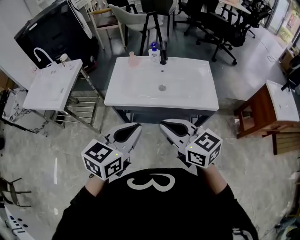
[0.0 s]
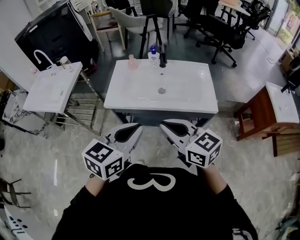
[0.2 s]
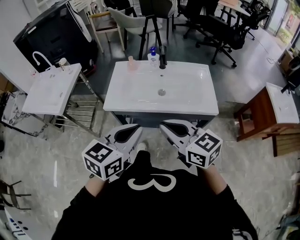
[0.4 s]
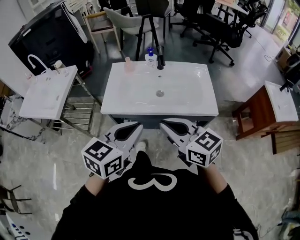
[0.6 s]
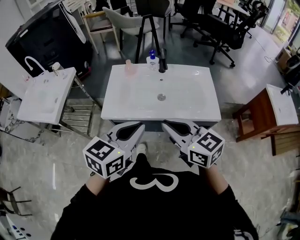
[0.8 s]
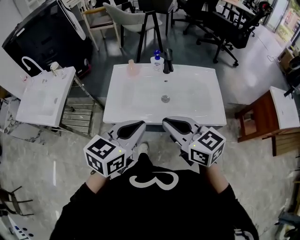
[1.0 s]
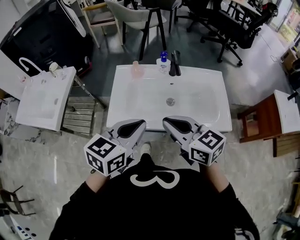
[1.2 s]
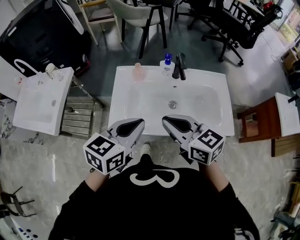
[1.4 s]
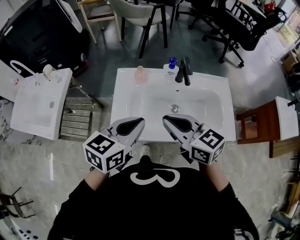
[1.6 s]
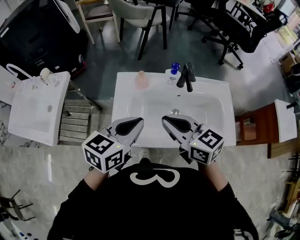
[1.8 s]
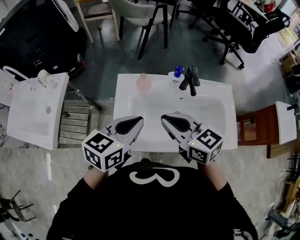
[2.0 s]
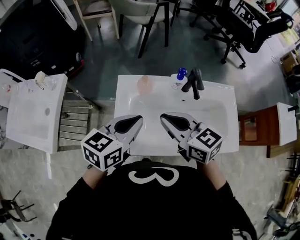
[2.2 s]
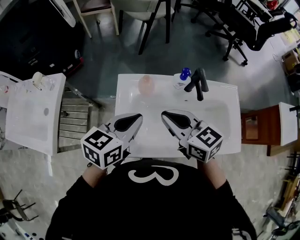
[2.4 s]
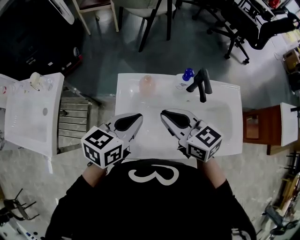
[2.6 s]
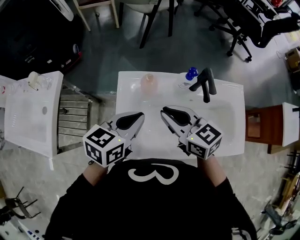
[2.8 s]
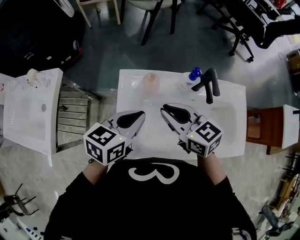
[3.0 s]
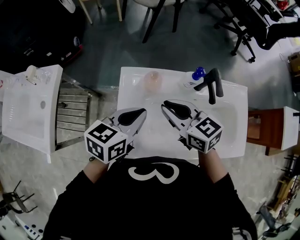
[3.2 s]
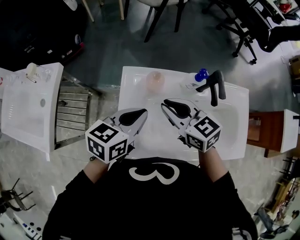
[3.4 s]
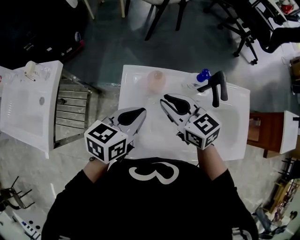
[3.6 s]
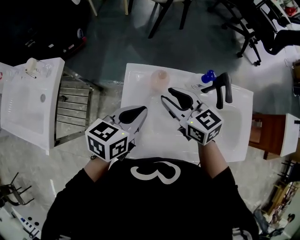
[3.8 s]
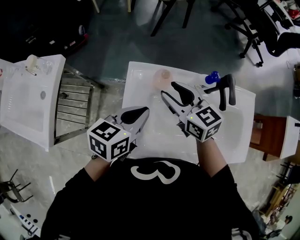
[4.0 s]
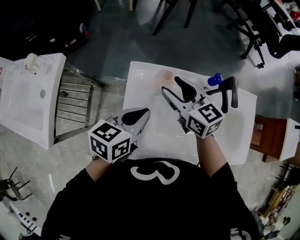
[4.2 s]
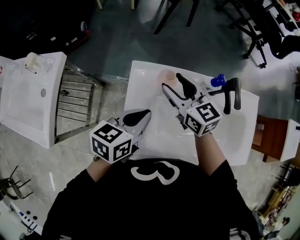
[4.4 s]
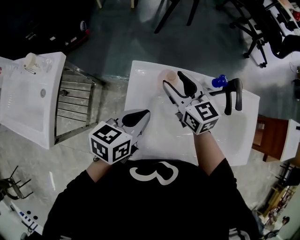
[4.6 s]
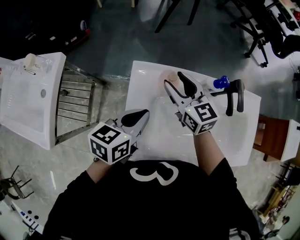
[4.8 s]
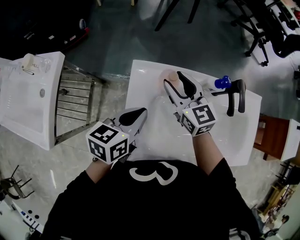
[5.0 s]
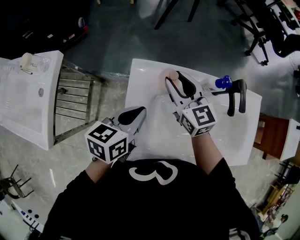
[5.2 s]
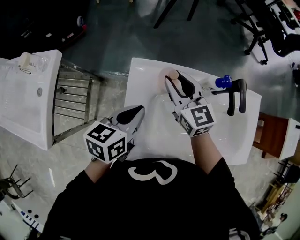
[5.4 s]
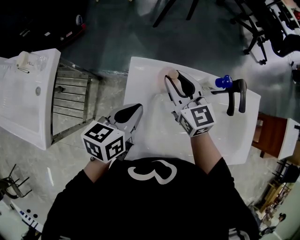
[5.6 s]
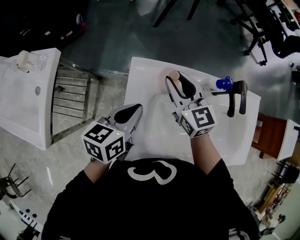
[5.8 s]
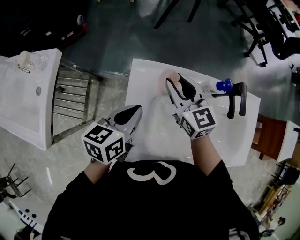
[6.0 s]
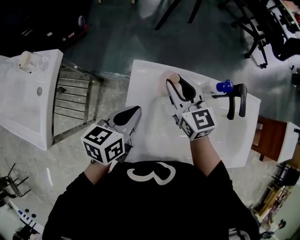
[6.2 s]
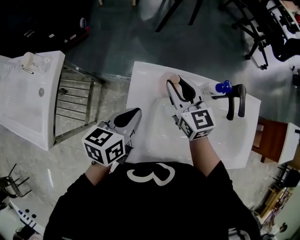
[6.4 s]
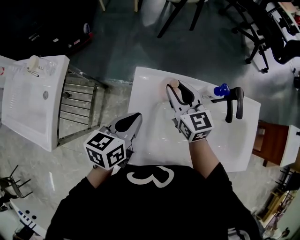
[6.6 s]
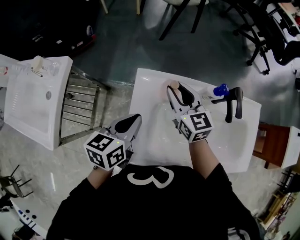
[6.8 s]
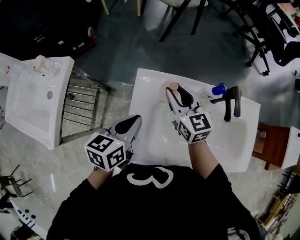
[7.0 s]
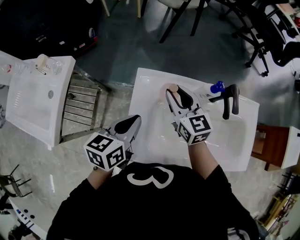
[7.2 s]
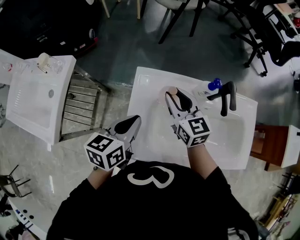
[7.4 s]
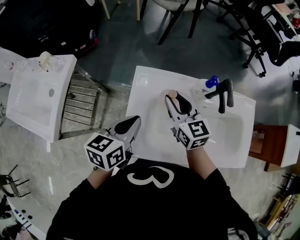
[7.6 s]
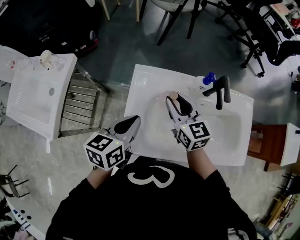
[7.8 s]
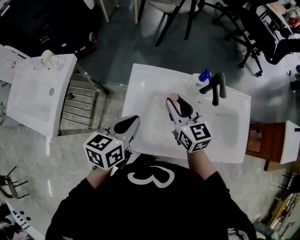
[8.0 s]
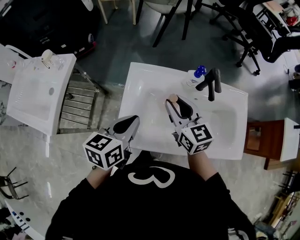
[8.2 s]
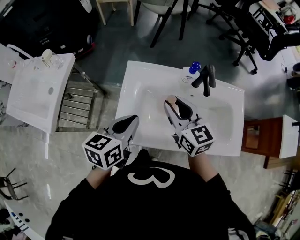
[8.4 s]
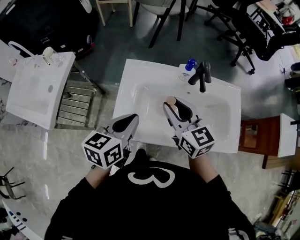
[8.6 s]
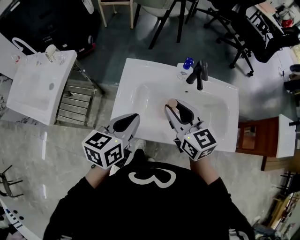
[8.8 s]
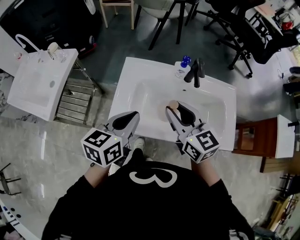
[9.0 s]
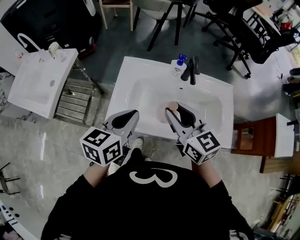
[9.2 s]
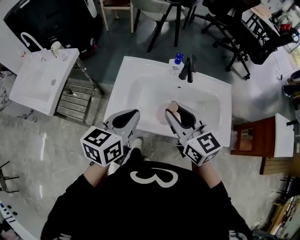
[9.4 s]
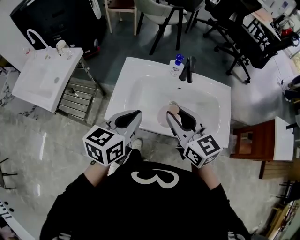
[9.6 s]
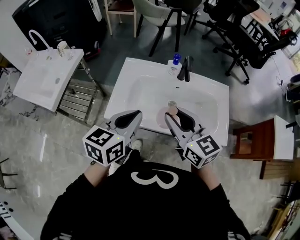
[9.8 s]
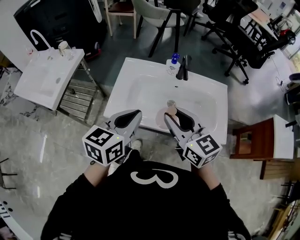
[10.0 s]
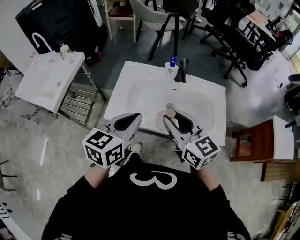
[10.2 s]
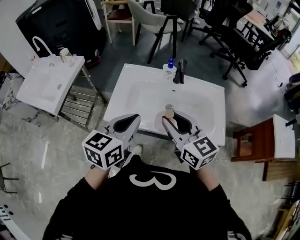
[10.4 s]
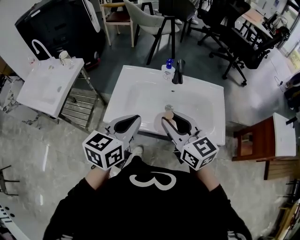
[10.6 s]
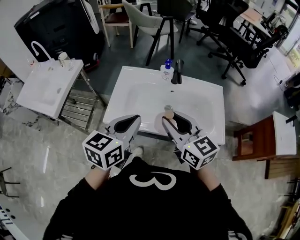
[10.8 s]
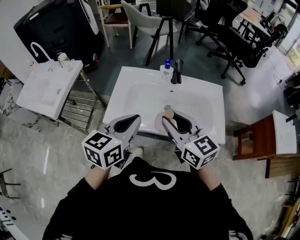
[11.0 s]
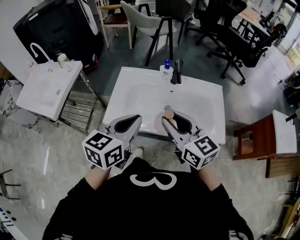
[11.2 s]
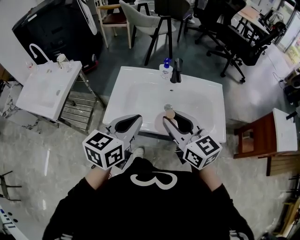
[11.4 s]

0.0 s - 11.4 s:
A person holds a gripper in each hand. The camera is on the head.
0.0 s - 1.4 s: Both grippers move forward, some 25 cm.
1.4 s - 2.8 s: The right gripper travels forward by about 20 cm, while the left gripper heads forward and downward, covering about 20 cm.
2.8 s - 4.2 s: The right gripper is displaced forward and downward by approximately 10 cm, and opens its fingers, while the left gripper moves downward, approximately 5 cm.
4.2 s - 5.6 s: The left gripper ends up roughly 5 cm from where it was.
5.6 s - 7.2 s: The grippers move only a little.
7.2 s - 8.6 s: The right gripper is displaced backward, upward and to the right by about 20 cm. The left gripper moves backward, to the right and upward, roughly 15 cm.
8.6 s - 10.0 s: The left gripper travels backward, upward and to the right by approximately 15 cm. The right gripper heads backward and upward, covering some 15 cm.
10.0 s - 11.4 s: The grippers make only small movements.

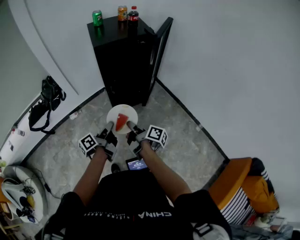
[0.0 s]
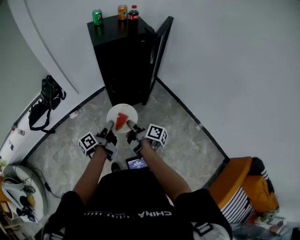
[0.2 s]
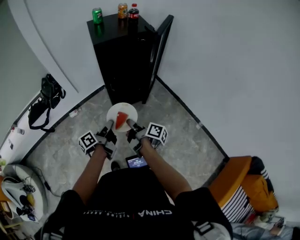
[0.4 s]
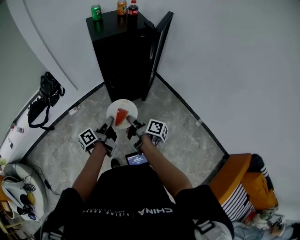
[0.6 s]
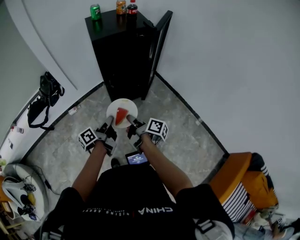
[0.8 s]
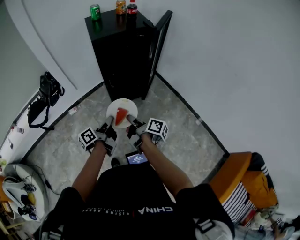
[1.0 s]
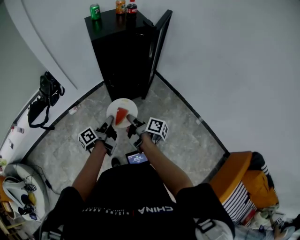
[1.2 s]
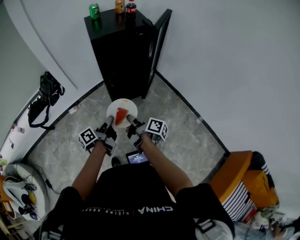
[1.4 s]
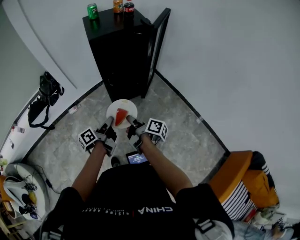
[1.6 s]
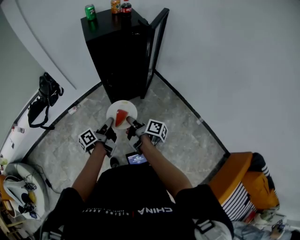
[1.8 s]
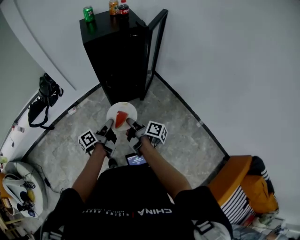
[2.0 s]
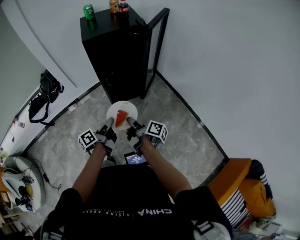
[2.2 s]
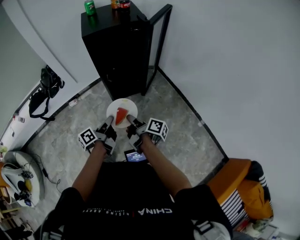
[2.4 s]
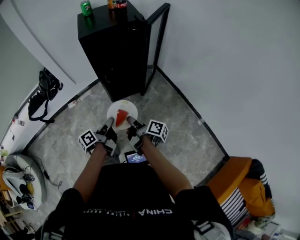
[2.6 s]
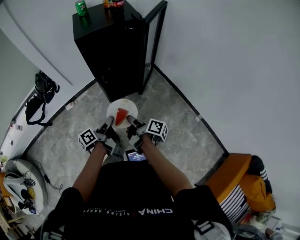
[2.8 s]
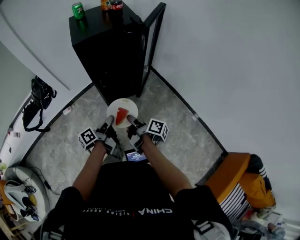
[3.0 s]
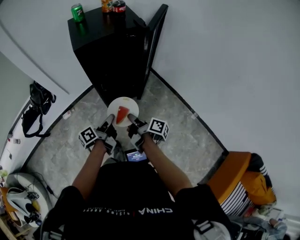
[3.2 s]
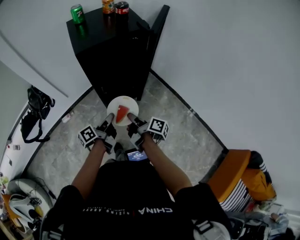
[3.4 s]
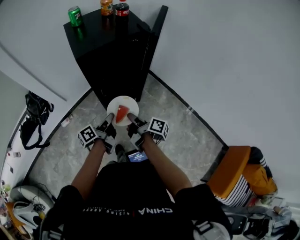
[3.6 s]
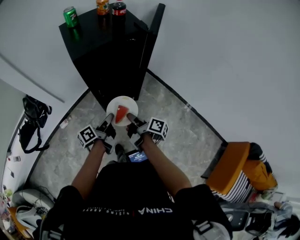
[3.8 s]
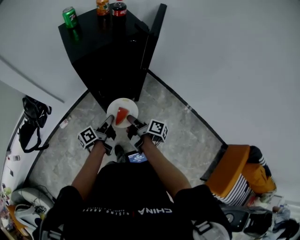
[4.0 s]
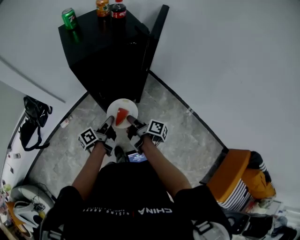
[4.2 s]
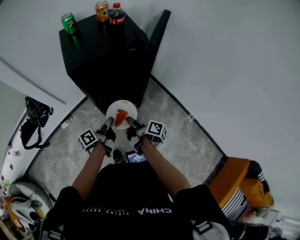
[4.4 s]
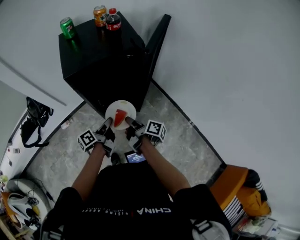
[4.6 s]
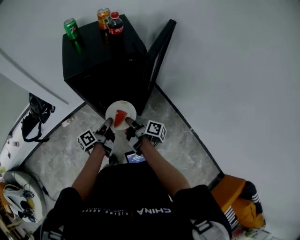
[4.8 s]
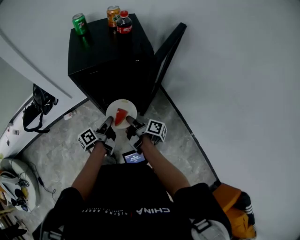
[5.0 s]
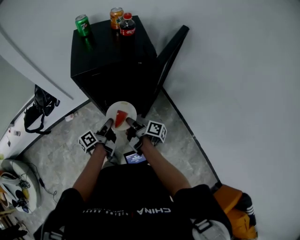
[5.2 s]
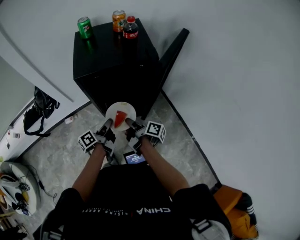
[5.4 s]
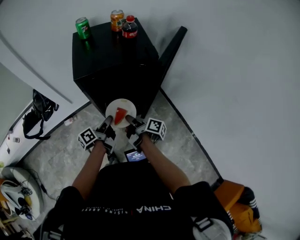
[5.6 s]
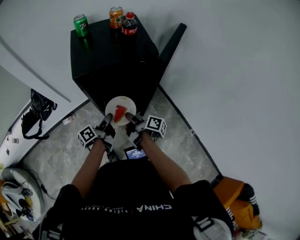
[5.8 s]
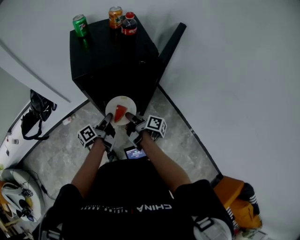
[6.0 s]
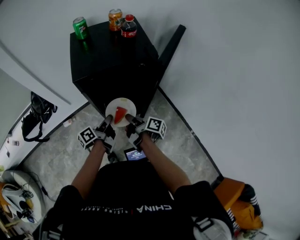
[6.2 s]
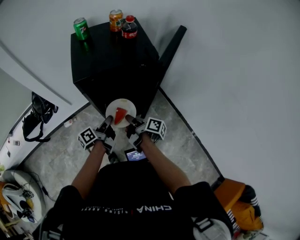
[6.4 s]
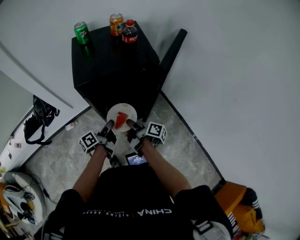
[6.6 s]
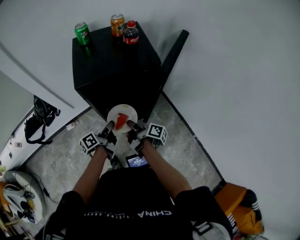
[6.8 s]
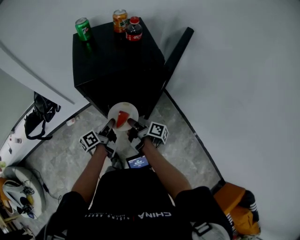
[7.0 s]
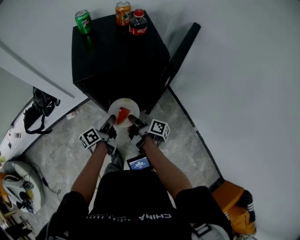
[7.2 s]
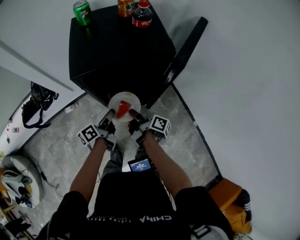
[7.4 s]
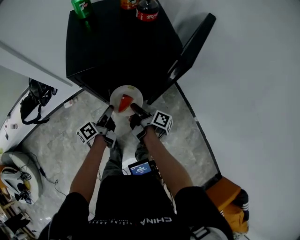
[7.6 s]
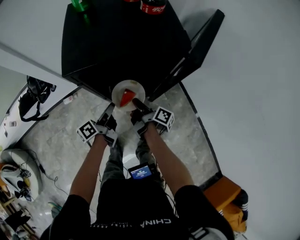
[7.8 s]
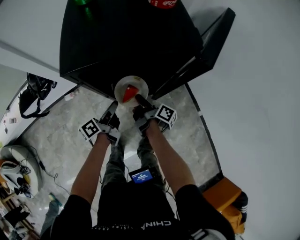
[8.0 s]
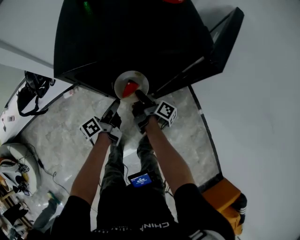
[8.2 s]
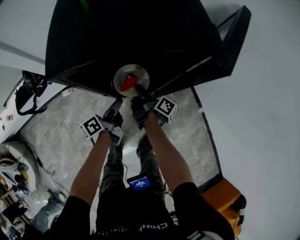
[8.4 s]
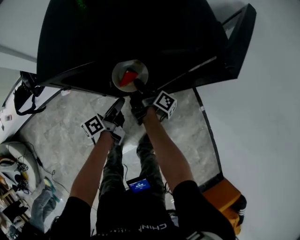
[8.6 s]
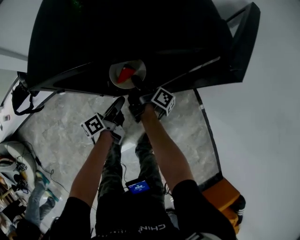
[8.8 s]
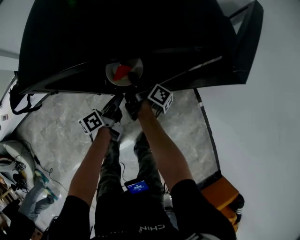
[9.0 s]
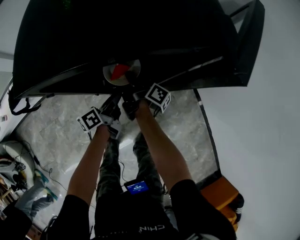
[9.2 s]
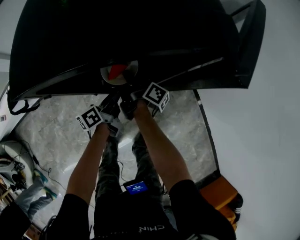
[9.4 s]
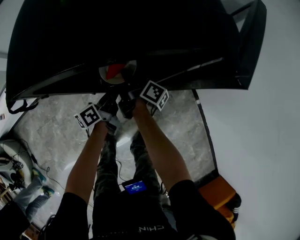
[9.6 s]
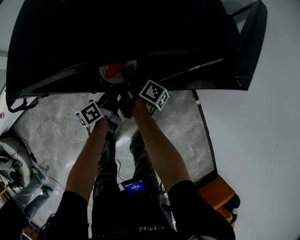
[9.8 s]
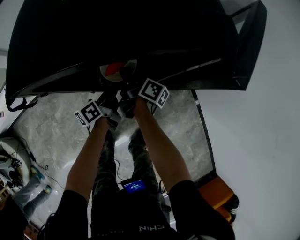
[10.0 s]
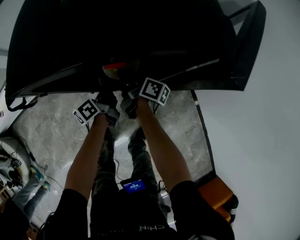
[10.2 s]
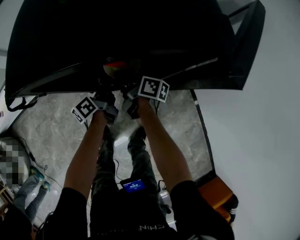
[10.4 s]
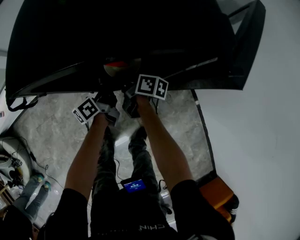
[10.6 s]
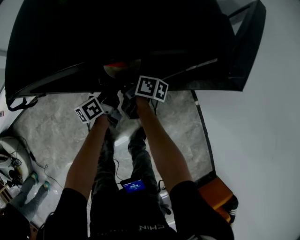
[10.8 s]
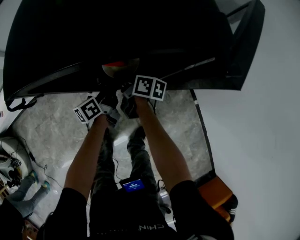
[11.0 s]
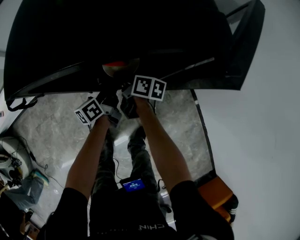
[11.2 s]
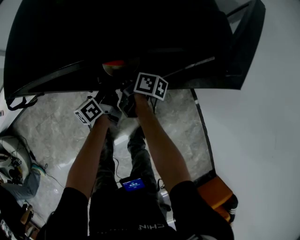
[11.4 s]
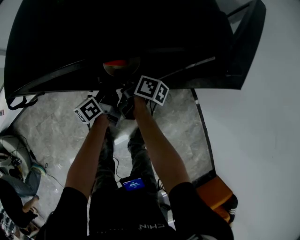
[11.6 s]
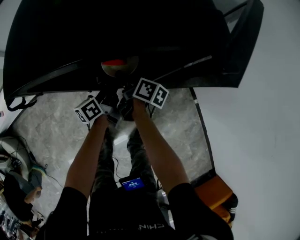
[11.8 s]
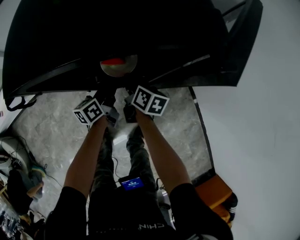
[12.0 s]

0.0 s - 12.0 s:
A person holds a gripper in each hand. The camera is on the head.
1.6 s - 3.0 s: The left gripper moves about 10 cm.
3.0 s - 4.4 s: The left gripper moves approximately 15 cm.
4.4 s - 6.0 s: The left gripper ends up some 10 cm from where it was.
6.0 s - 7.6 s: The left gripper moves about 5 cm.
7.6 s - 9.0 s: The left gripper travels downward by about 15 cm.
9.0 s - 10.4 s: The left gripper shifts by approximately 5 cm.
10.4 s - 12.0 s: The left gripper turns by about 20 degrees.

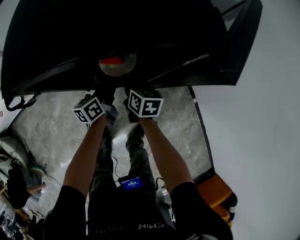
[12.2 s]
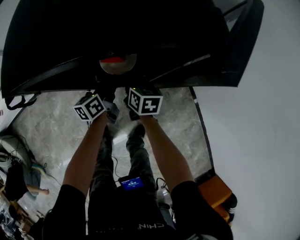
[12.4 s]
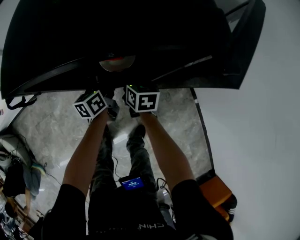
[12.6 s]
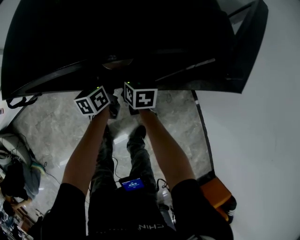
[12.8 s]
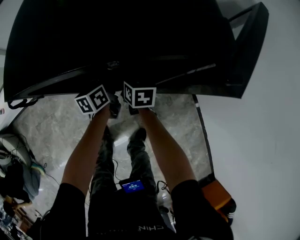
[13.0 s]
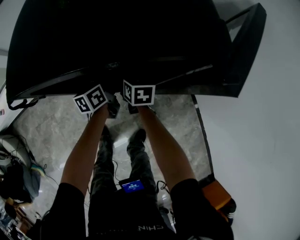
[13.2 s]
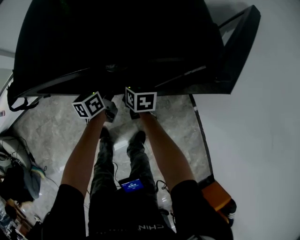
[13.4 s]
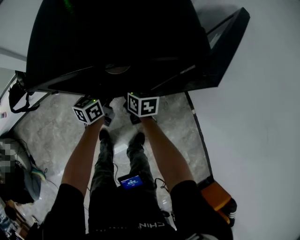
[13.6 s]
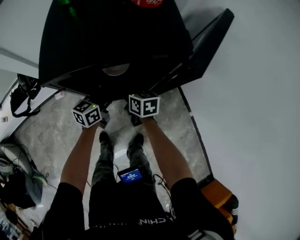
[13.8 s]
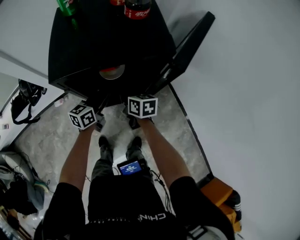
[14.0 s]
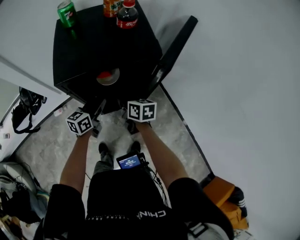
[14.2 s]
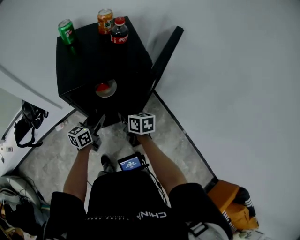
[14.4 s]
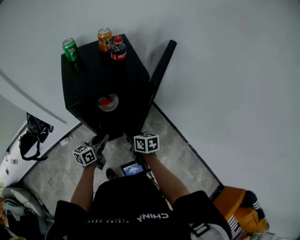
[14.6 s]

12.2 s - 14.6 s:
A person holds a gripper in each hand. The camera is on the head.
12.2 s - 13.4 s: The left gripper moves some 5 cm.
13.4 s - 14.6 s: The left gripper shifts by some 25 cm, and swivels approximately 20 degrees.
